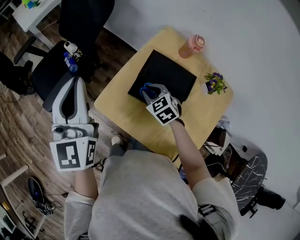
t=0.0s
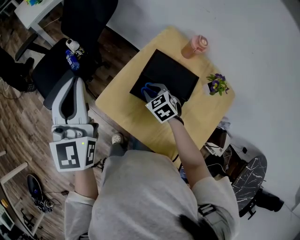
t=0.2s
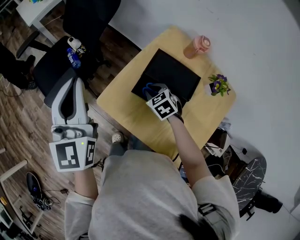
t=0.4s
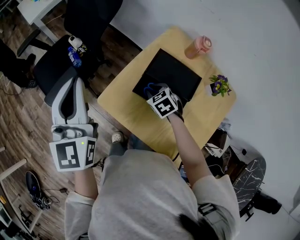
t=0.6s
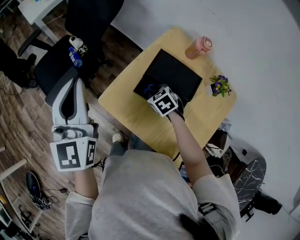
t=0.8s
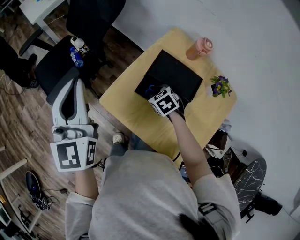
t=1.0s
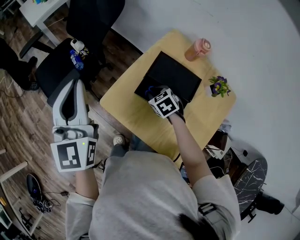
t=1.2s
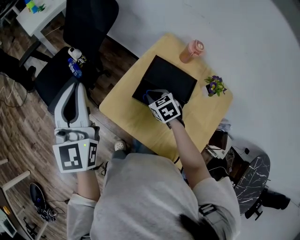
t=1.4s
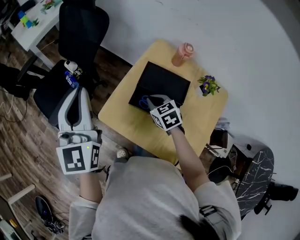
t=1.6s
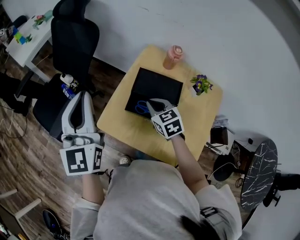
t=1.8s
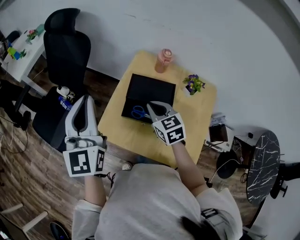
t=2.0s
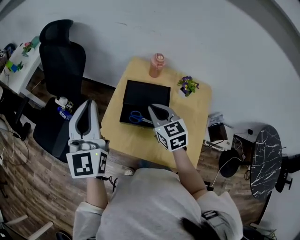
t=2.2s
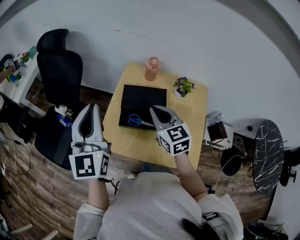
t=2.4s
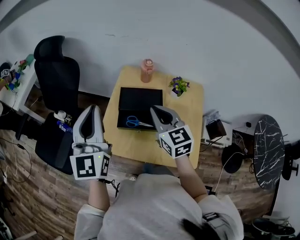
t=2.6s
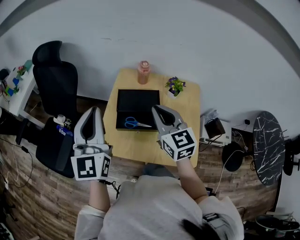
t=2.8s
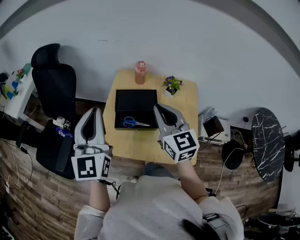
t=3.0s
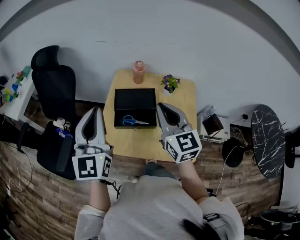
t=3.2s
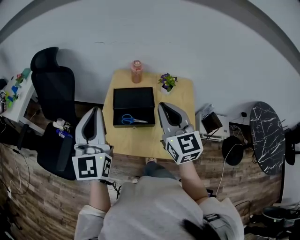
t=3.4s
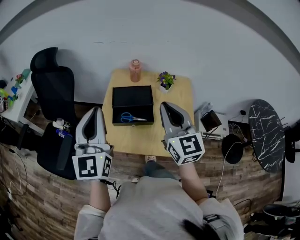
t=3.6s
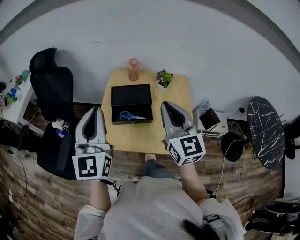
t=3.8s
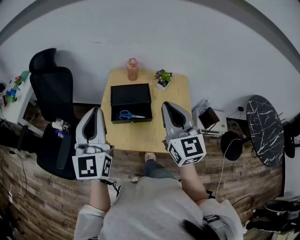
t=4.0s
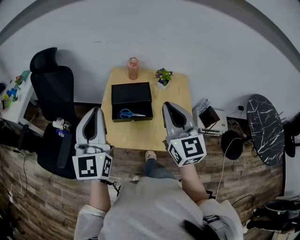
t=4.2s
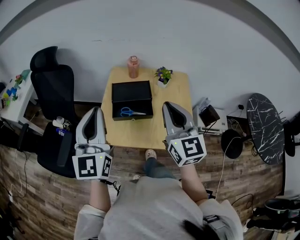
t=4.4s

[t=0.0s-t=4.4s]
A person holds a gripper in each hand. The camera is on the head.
t=0.0s to t=1.4s: The grippers stay close to where they were, moving slightly.
t=1.4s to t=3.0s: The right gripper moves upward, roughly 30 cm, and angles its fingers upward, by some 50 degrees. The left gripper ends up about 15 cm from where it was, and rotates approximately 30 degrees.
t=3.0s to t=4.4s: The grippers both shift backward by approximately 10 cm.

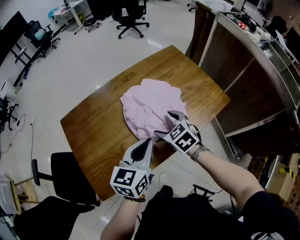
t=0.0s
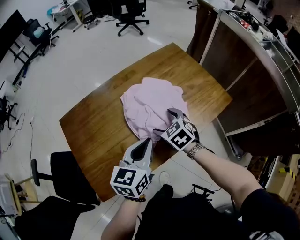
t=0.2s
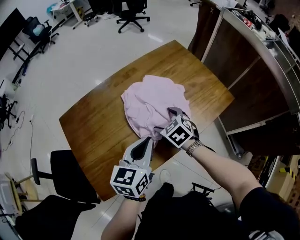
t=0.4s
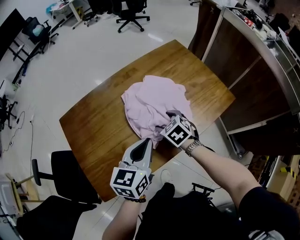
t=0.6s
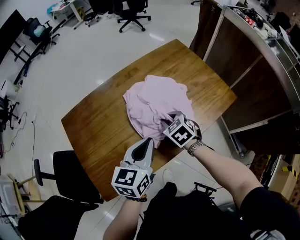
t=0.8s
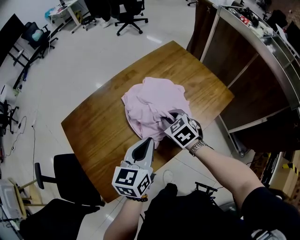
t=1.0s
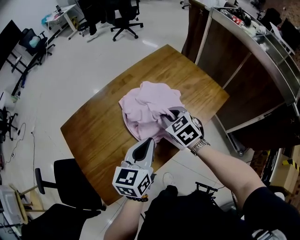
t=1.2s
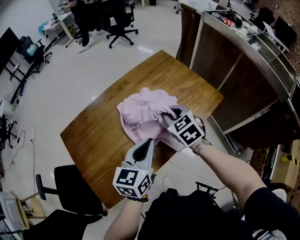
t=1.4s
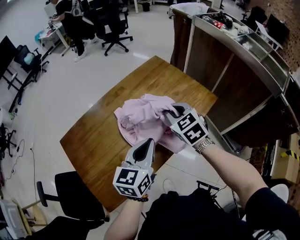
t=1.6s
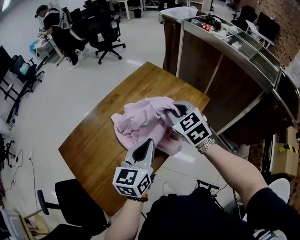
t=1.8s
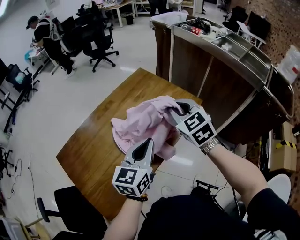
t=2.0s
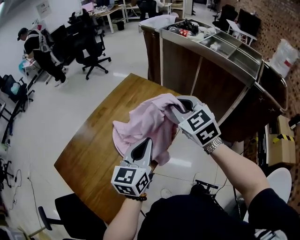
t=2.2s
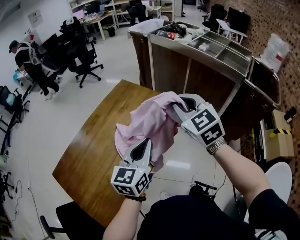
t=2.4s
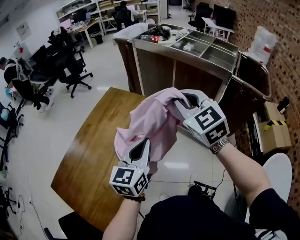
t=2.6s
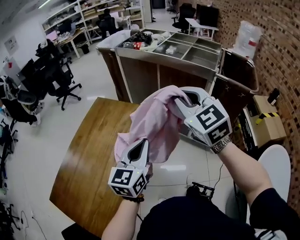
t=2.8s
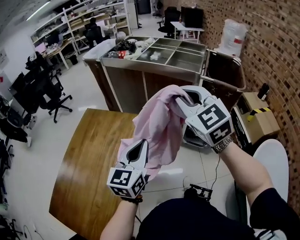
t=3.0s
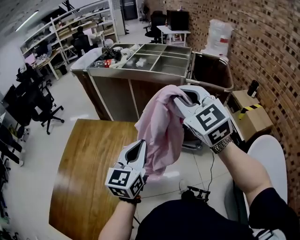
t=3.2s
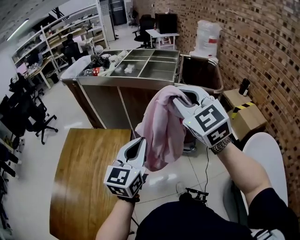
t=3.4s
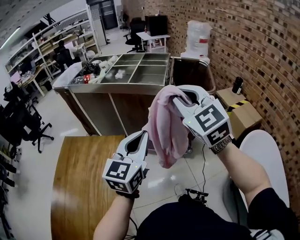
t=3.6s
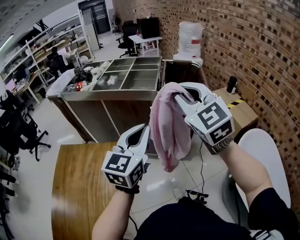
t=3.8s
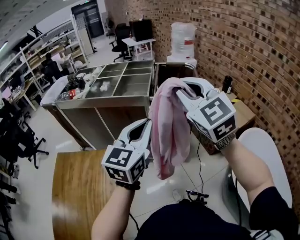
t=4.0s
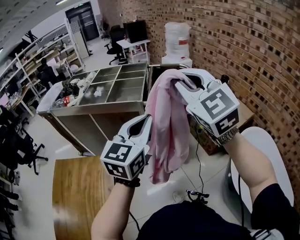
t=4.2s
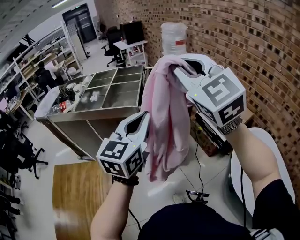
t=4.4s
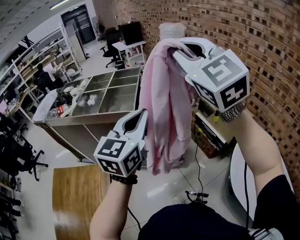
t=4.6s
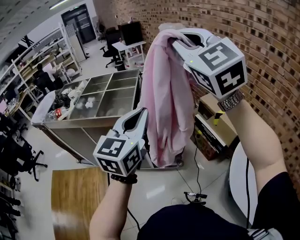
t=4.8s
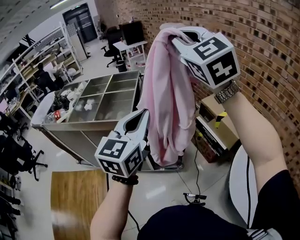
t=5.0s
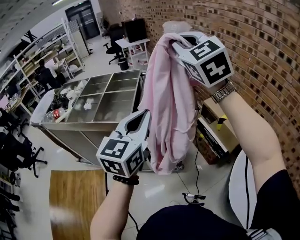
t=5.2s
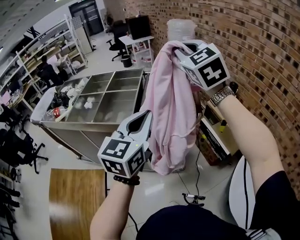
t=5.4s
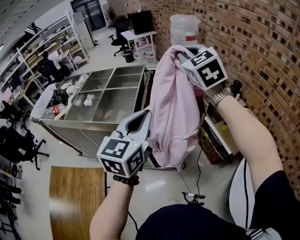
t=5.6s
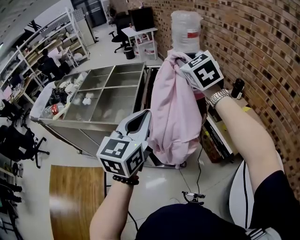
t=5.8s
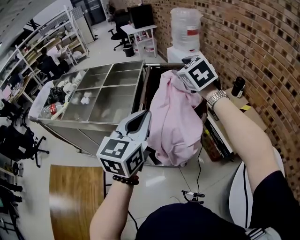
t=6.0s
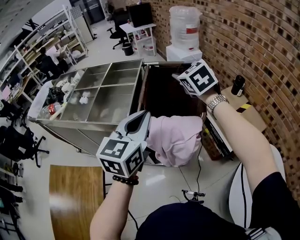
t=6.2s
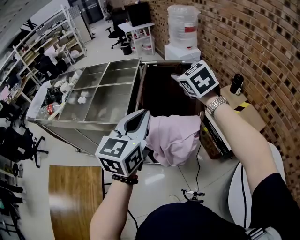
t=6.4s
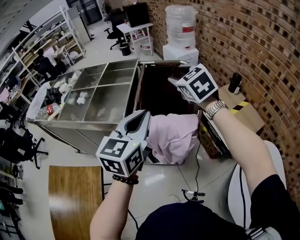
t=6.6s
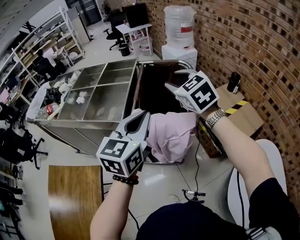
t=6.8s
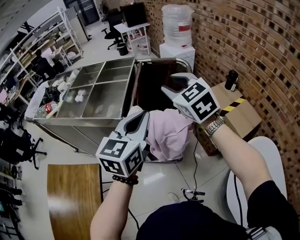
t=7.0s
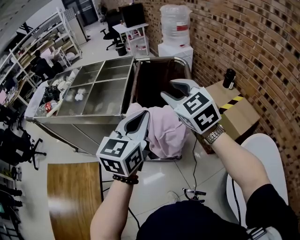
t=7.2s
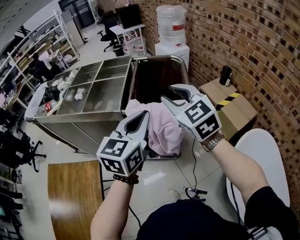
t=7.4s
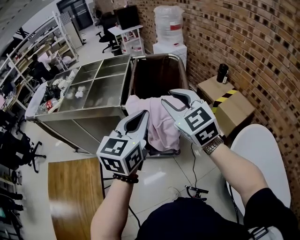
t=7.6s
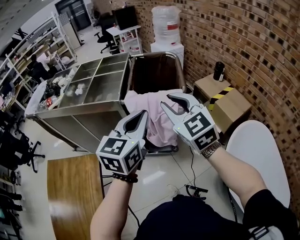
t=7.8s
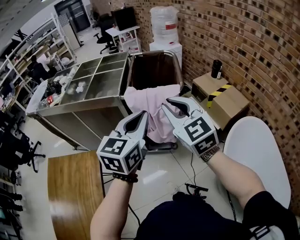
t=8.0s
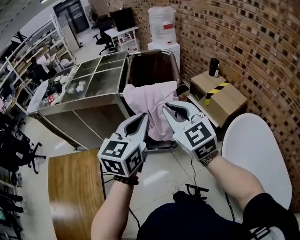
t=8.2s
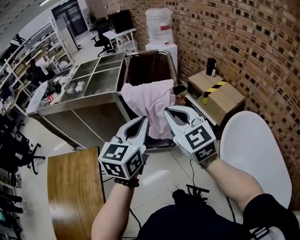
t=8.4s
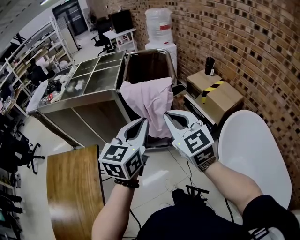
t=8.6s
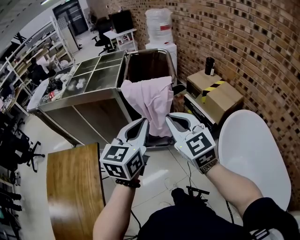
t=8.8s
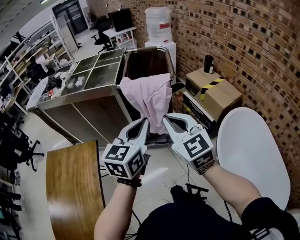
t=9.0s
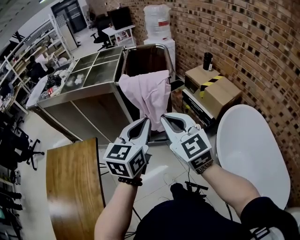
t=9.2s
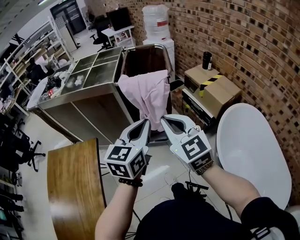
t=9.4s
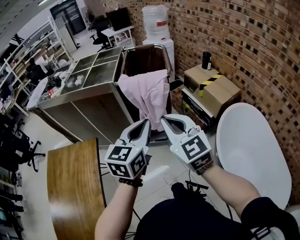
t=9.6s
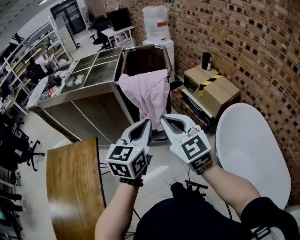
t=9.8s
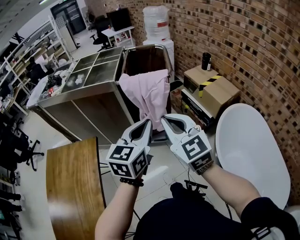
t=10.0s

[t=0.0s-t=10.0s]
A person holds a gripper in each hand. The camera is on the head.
t=0.0s to t=1.4s: The right gripper moves upward, roughly 10 cm, and closes.
t=1.4s to t=2.8s: The right gripper is displaced upward by approximately 35 cm, and swivels about 40 degrees; the left gripper ends up roughly 25 cm from where it was, and turns by roughly 30 degrees.
t=2.8s to t=4.2s: The left gripper shifts by some 35 cm, and rotates roughly 30 degrees. Meanwhile the right gripper changes place by some 35 cm, and rotates about 30 degrees.
t=4.2s to t=5.8s: The right gripper heads forward, covering approximately 40 cm, and changes its angle by roughly 20 degrees. The left gripper goes some 25 cm forward.
t=5.8s to t=7.2s: The right gripper is displaced backward and downward by about 15 cm.
t=7.2s to t=8.6s: Both grippers move backward, approximately 25 cm. The right gripper closes its fingers.
t=8.6s to t=10.0s: The right gripper travels backward by about 5 cm, while the left gripper shifts by about 5 cm.

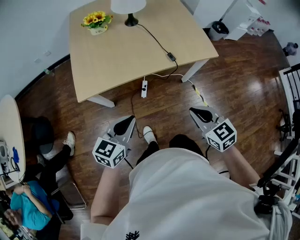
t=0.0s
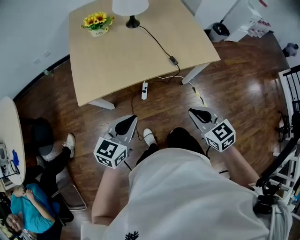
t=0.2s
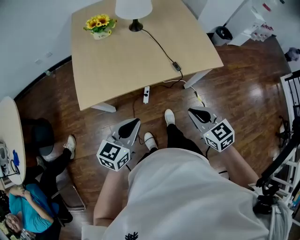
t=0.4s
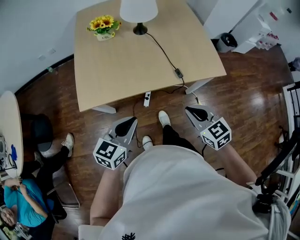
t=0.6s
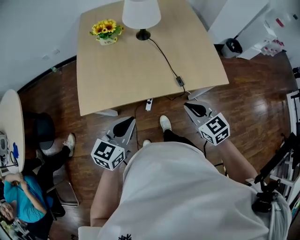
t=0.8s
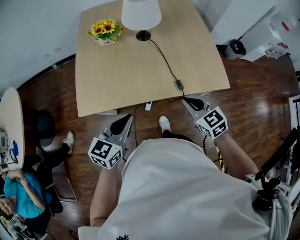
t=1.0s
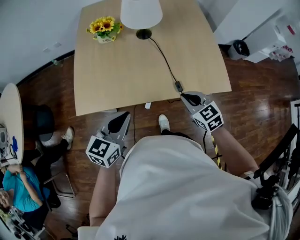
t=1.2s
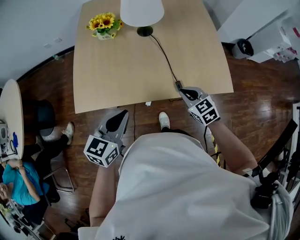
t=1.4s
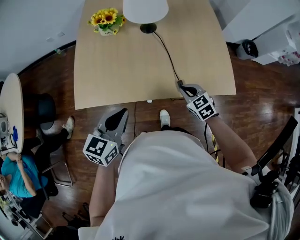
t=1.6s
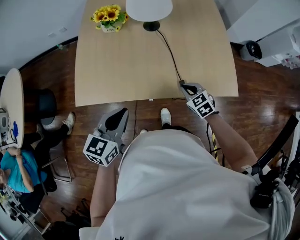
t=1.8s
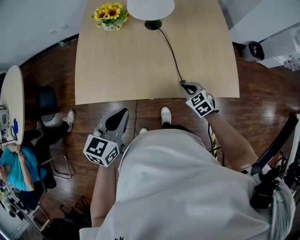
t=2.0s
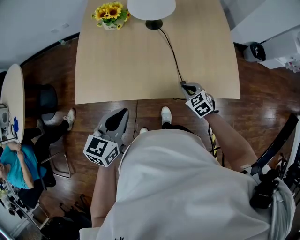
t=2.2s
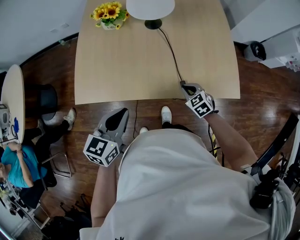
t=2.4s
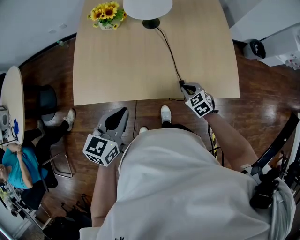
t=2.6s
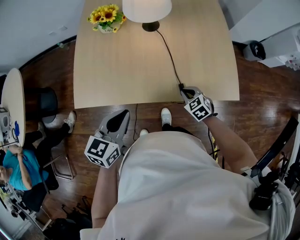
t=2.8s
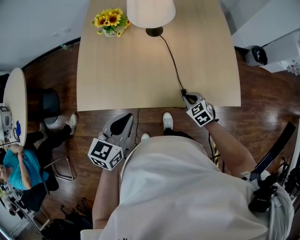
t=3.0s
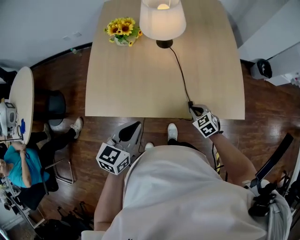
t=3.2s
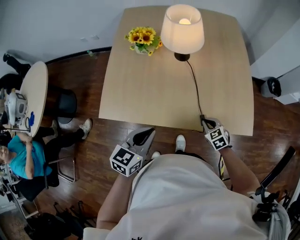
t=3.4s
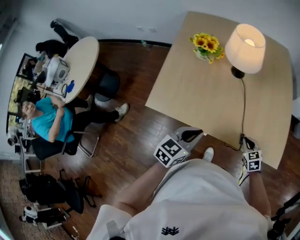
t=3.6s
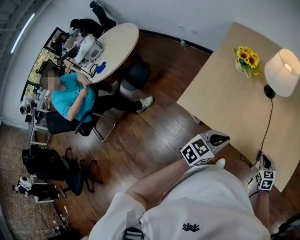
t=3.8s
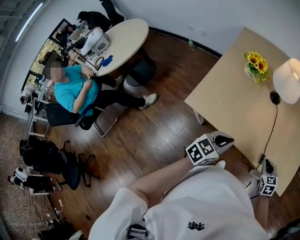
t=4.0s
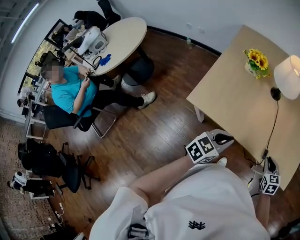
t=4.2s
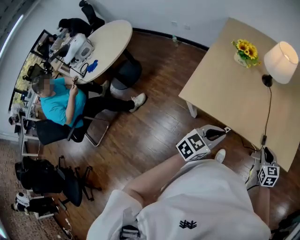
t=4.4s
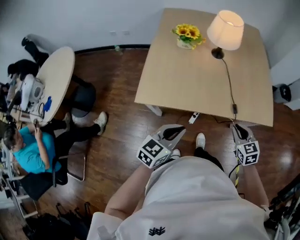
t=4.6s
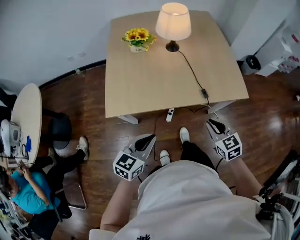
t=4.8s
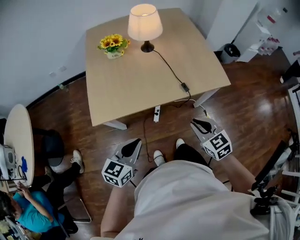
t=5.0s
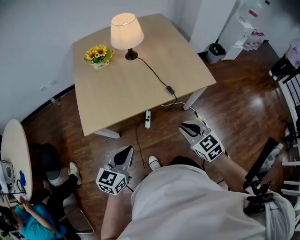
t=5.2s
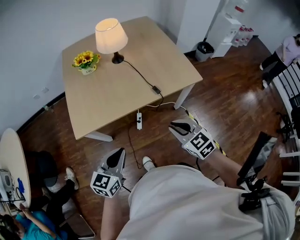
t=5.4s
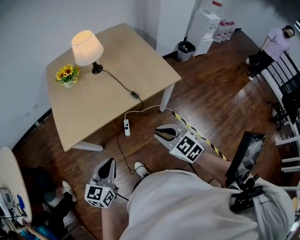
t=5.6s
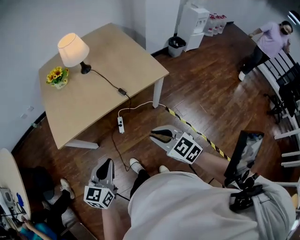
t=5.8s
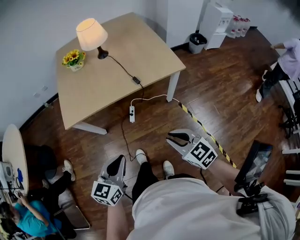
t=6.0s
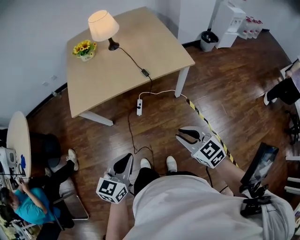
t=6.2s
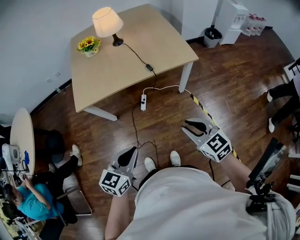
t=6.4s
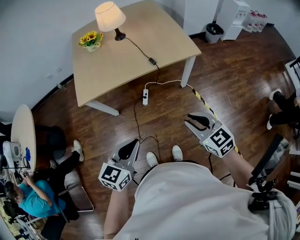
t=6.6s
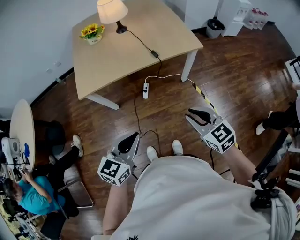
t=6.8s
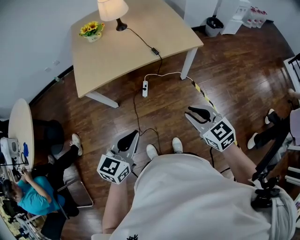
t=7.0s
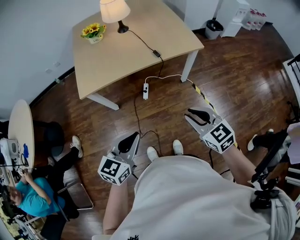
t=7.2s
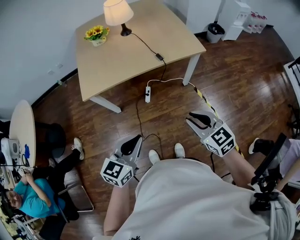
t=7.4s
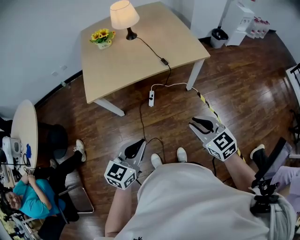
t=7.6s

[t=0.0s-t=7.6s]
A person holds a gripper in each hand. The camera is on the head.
t=0.0s to t=1.6s: The right gripper is displaced forward and downward by about 35 cm, while the left gripper moves forward, approximately 20 cm.
t=1.6s to t=3.0s: The right gripper shifts about 5 cm downward.
t=3.0s to t=4.6s: The right gripper shifts roughly 20 cm upward, backward and to the left. The left gripper is displaced to the left and backward by some 15 cm.
t=4.6s to t=6.0s: The grippers both shift backward and to the right by some 25 cm.
t=6.0s to t=7.6s: The right gripper moves roughly 5 cm; the left gripper travels backward by some 5 cm.

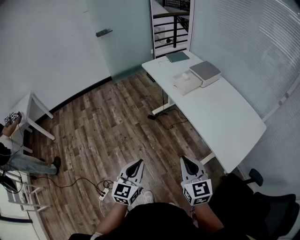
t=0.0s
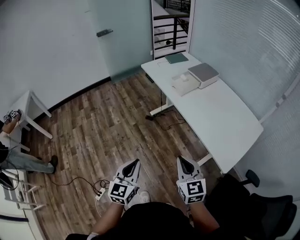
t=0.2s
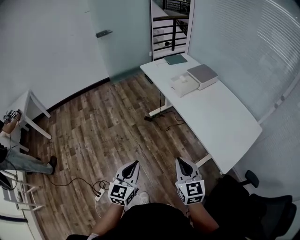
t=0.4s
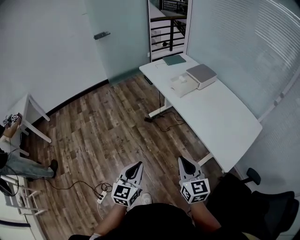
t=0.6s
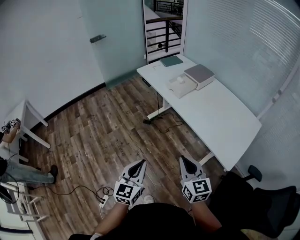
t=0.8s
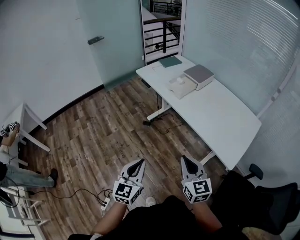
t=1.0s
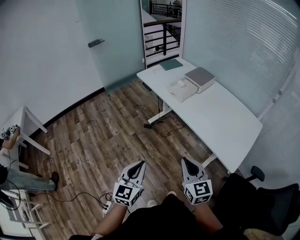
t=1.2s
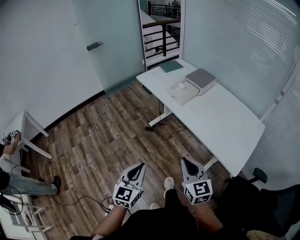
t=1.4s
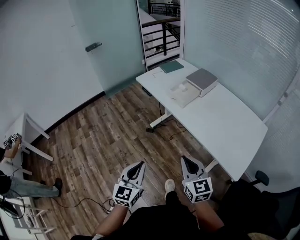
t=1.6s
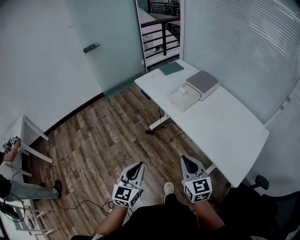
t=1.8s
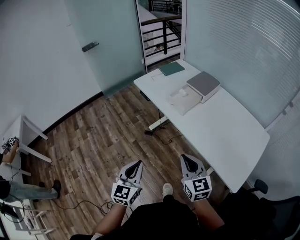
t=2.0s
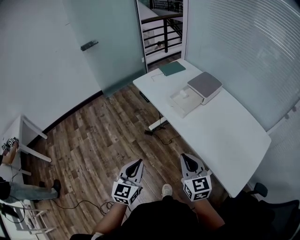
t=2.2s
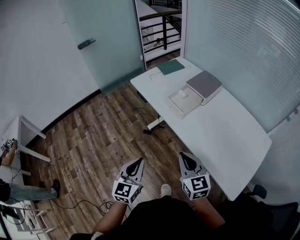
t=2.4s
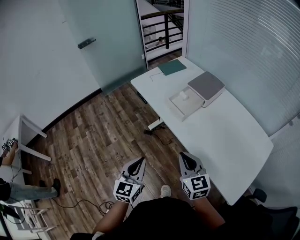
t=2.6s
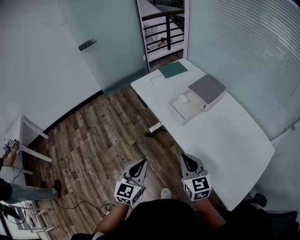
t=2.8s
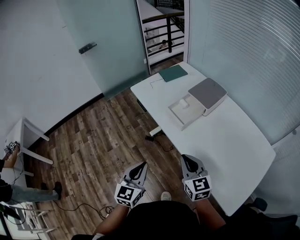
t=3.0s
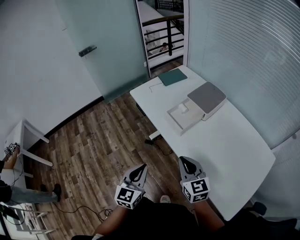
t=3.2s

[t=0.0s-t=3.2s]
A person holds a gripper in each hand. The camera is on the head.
t=0.0s to t=1.6s: Both grippers travel together forward, about 10 cm.
t=1.6s to t=3.2s: Both grippers move forward, approximately 25 cm.
